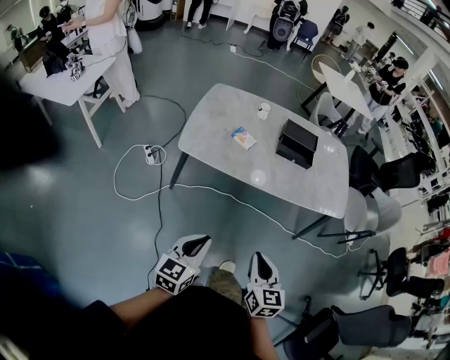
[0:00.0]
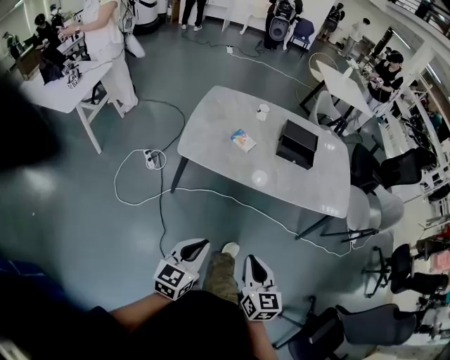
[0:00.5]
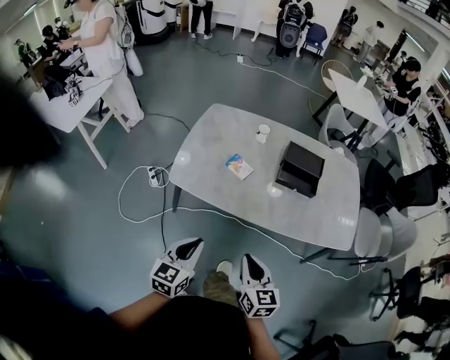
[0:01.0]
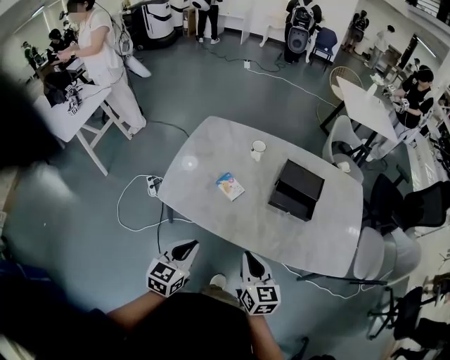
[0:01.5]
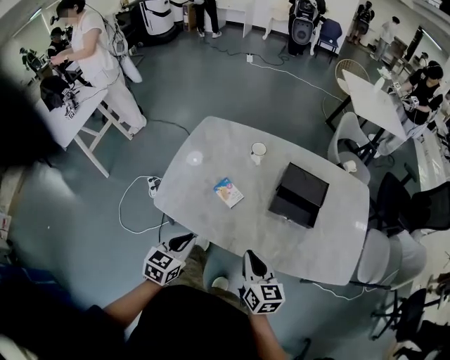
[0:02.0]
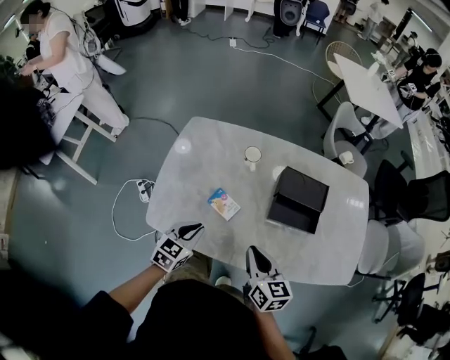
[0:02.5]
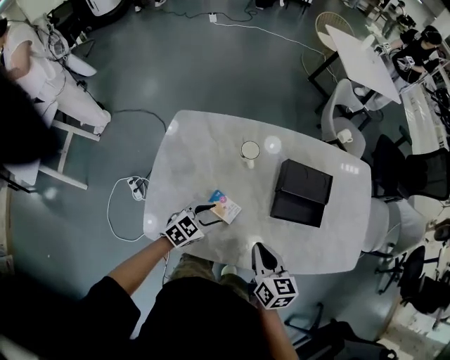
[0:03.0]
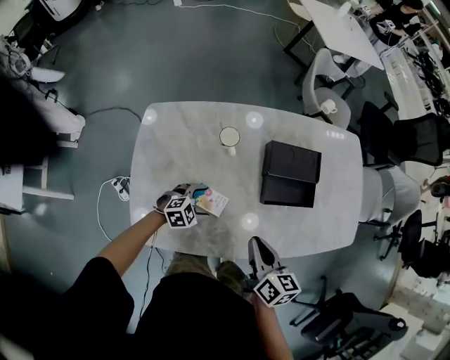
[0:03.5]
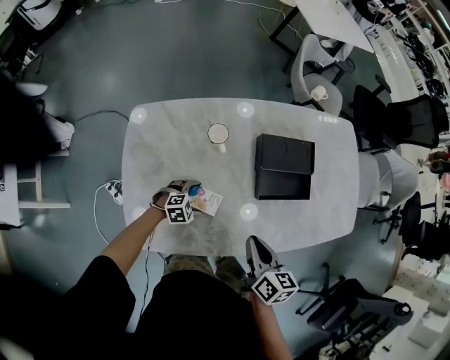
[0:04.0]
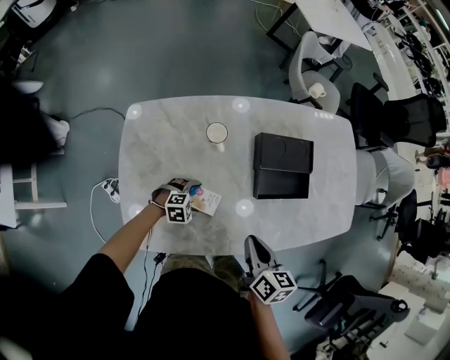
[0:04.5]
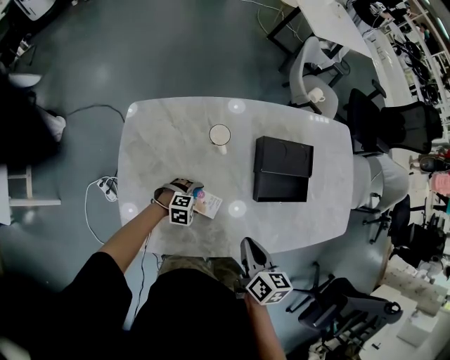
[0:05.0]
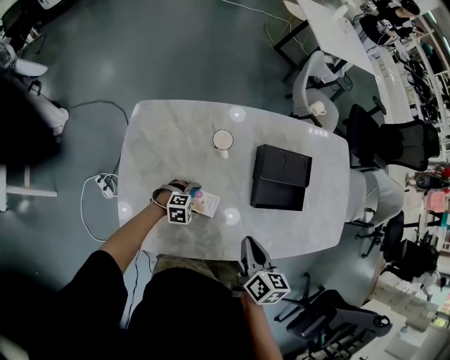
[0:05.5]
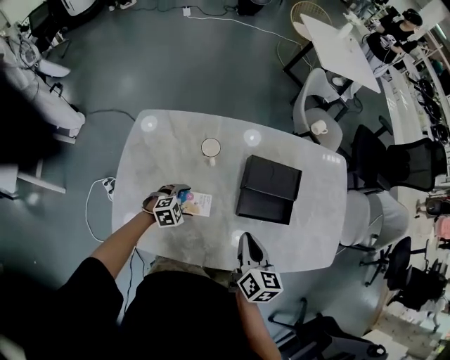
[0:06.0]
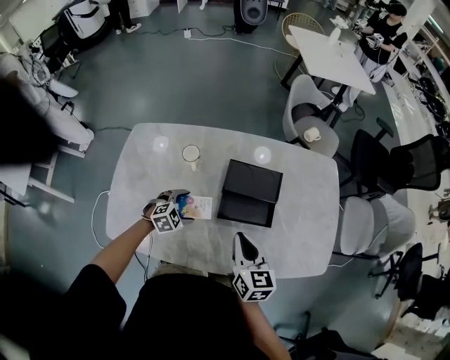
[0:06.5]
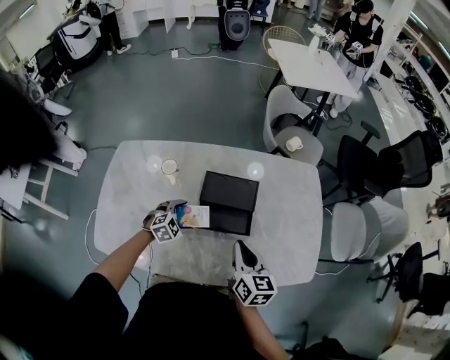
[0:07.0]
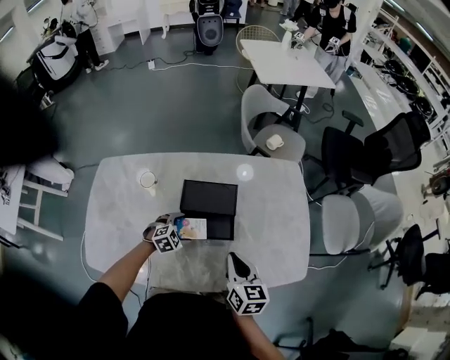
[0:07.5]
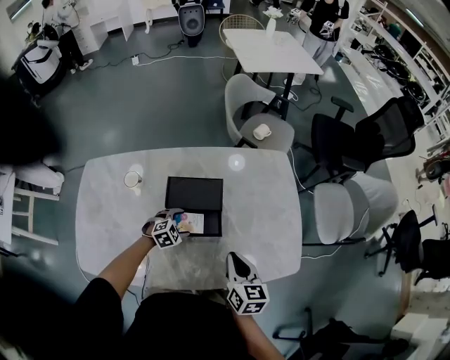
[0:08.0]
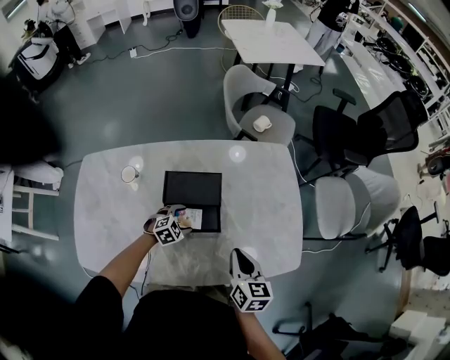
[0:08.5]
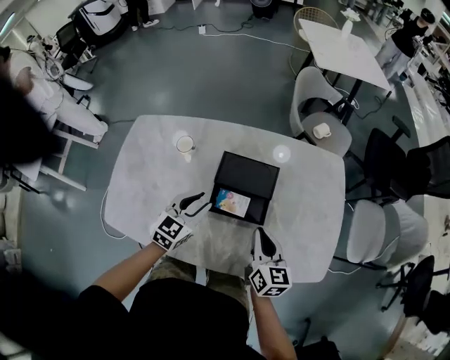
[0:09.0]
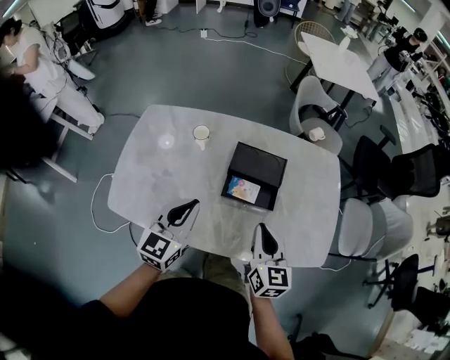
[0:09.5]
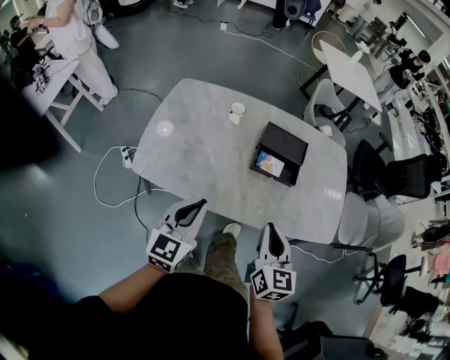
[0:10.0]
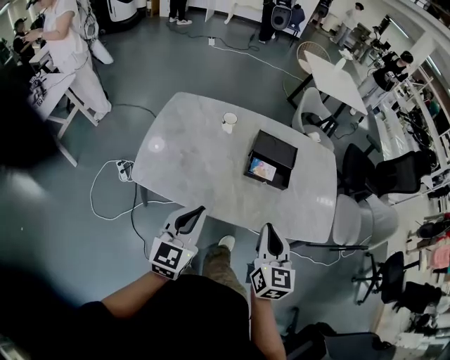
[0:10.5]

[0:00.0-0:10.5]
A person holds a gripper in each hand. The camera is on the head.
0:00.0 to 0:02.0: The two grippers go roughly 40 cm forward.
0:02.0 to 0:04.0: The right gripper changes place by roughly 20 cm, and rotates some 40 degrees, while the left gripper shifts by about 40 cm, rotates roughly 80 degrees, and opens its fingers.
0:04.0 to 0:06.5: The left gripper is displaced upward, to the right and forward by about 15 cm, and turns by some 20 degrees, while the right gripper shifts some 15 cm forward and to the right, and swivels roughly 30 degrees.
0:06.5 to 0:08.5: The left gripper is displaced to the right and forward by roughly 20 cm; the right gripper heads to the right, covering some 20 cm.
0:08.5 to 0:10.5: The left gripper changes place by roughly 60 cm, angles its fingers upward, by approximately 50 degrees, and closes up. The right gripper changes place by about 40 cm, and turns by approximately 30 degrees.

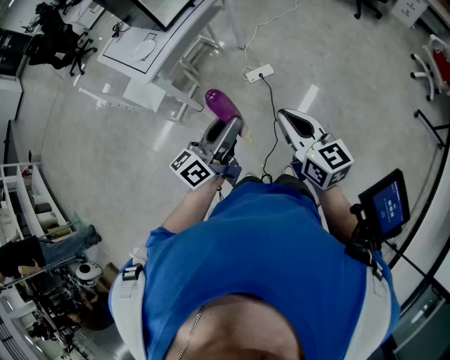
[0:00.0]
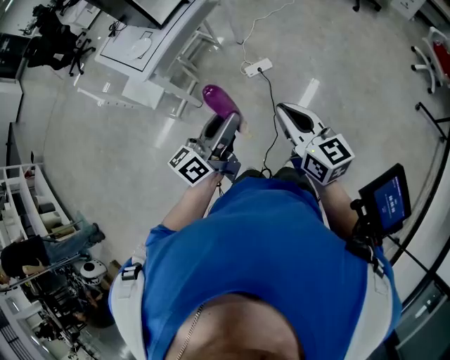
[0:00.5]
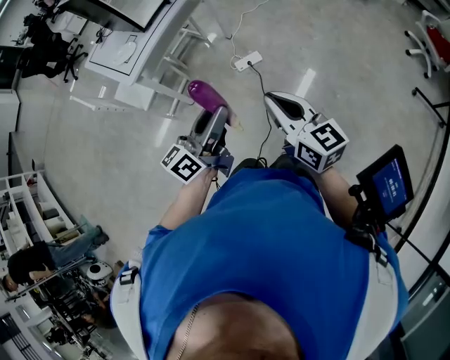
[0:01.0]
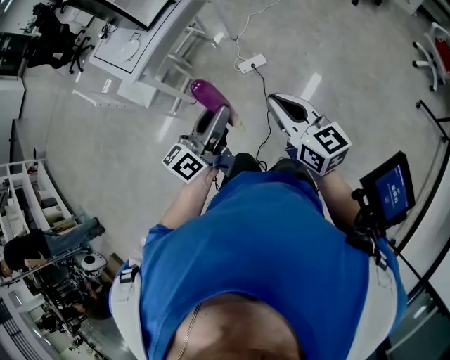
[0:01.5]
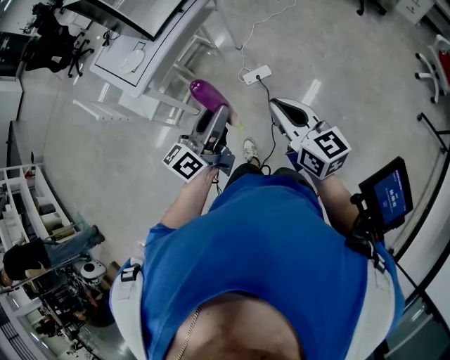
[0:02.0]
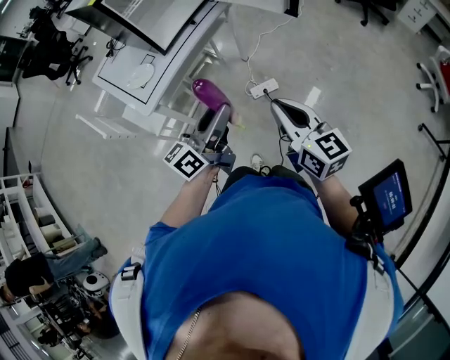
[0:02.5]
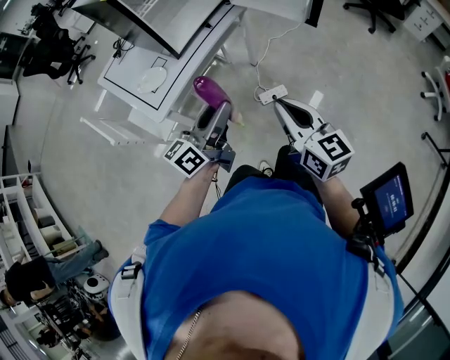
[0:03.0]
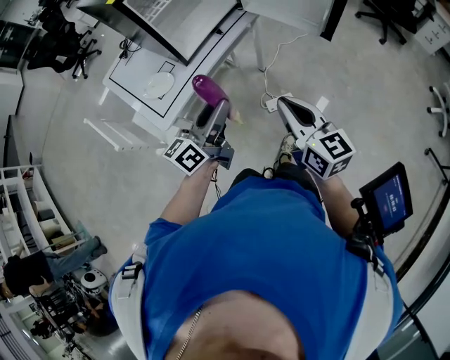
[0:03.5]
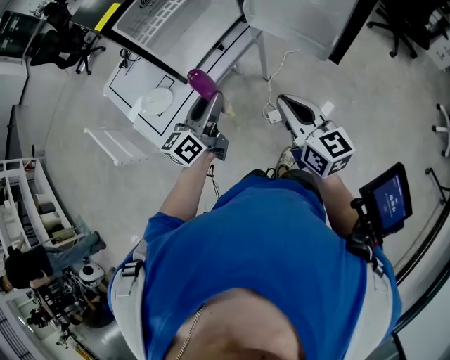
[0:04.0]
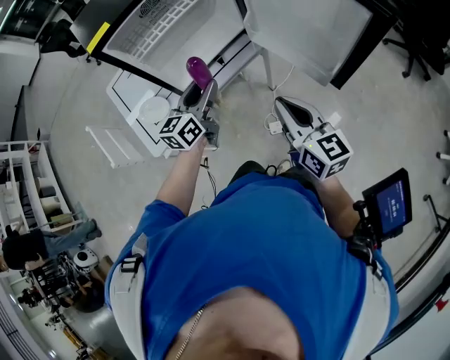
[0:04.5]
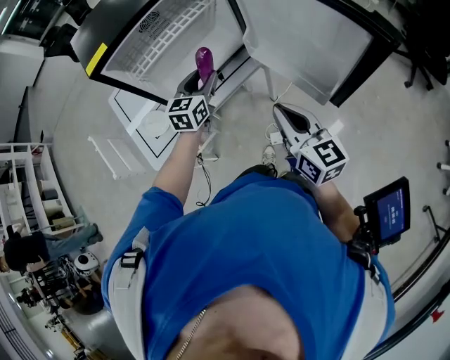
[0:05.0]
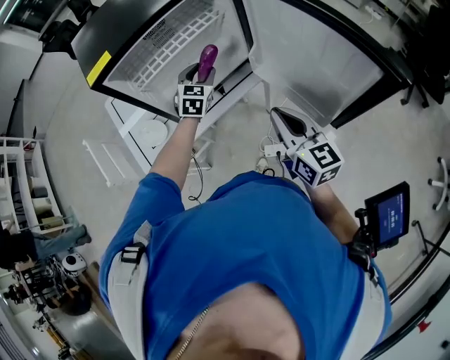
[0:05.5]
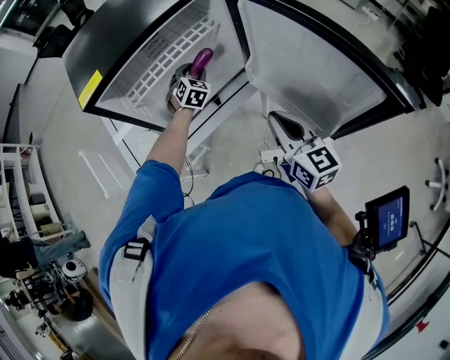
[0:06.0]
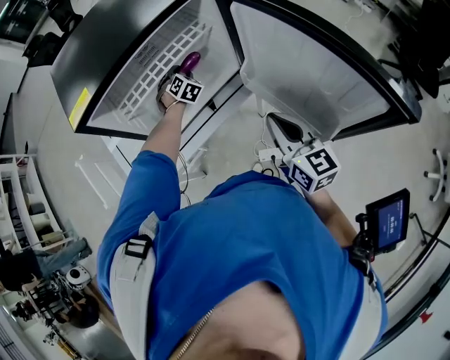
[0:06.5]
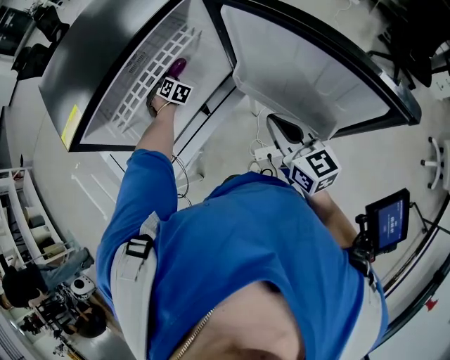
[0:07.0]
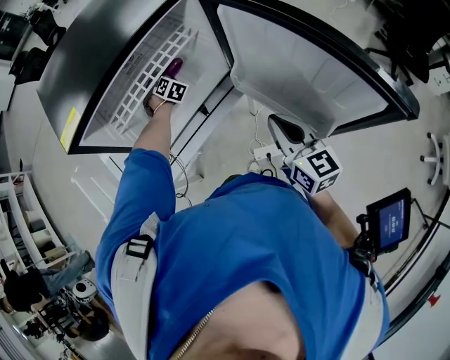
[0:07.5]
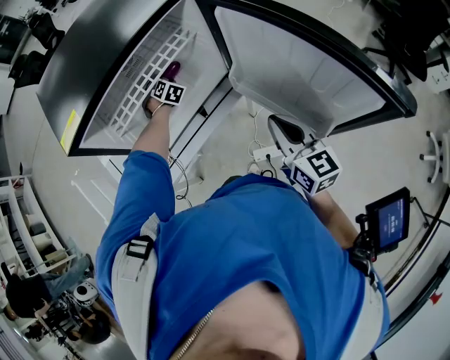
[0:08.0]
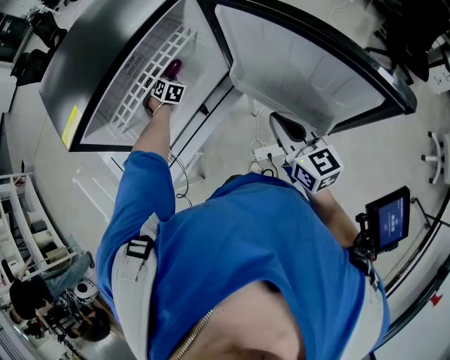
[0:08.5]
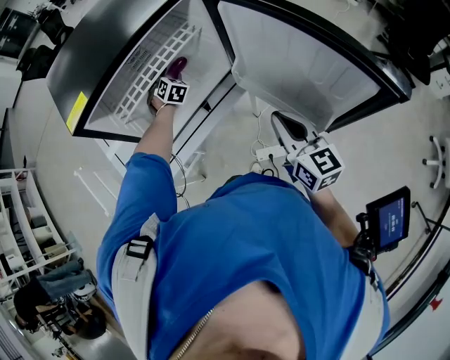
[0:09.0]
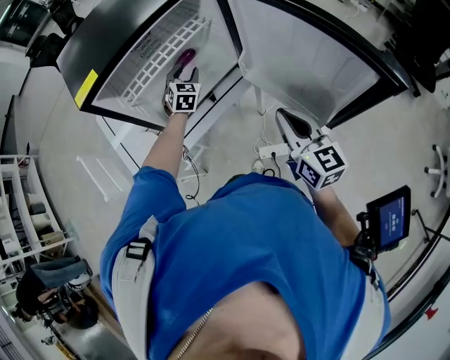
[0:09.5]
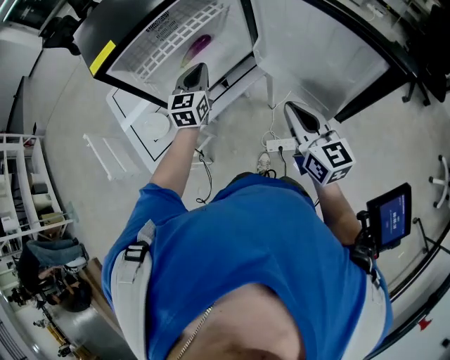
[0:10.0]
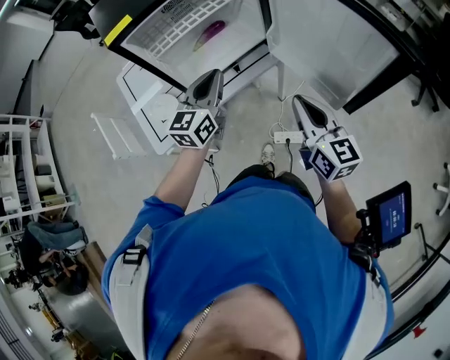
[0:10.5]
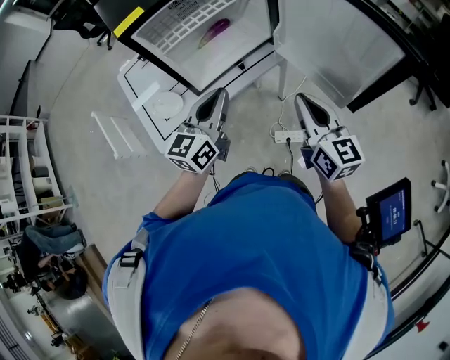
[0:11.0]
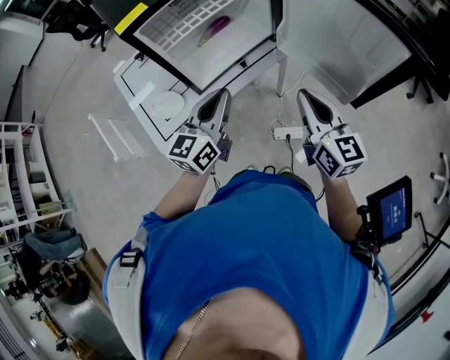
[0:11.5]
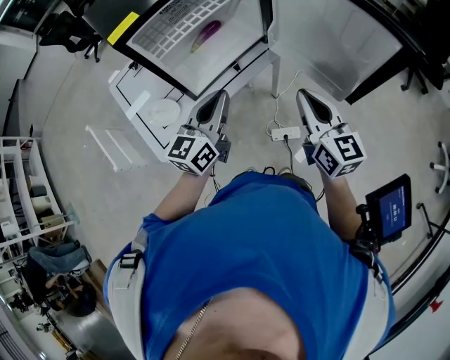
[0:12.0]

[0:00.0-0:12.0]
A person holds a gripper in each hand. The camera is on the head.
0:00.0 to 0:02.0: The grippers make only small movements.
0:02.0 to 0:04.0: The left gripper shifts by approximately 5 cm, while the right gripper moves roughly 10 cm backward and comes back.
0:04.0 to 0:06.0: The right gripper is displaced forward by approximately 20 cm. Meanwhile the left gripper heads forward, covering approximately 40 cm, and tilts its fingers approximately 40 degrees downward.
0:06.0 to 0:08.0: The left gripper heads forward and downward, covering some 10 cm.
0:08.0 to 0:10.0: The left gripper moves backward and upward, roughly 30 cm, tips its fingers upward by about 30 degrees, and closes its fingers; the right gripper shifts about 5 cm backward.
0:10.0 to 0:12.0: The left gripper is displaced backward by roughly 20 cm, and turns by approximately 30 degrees, while the right gripper moves about 5 cm.

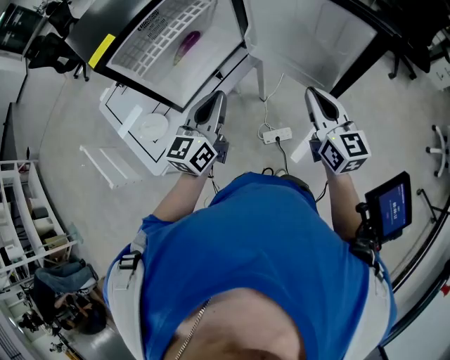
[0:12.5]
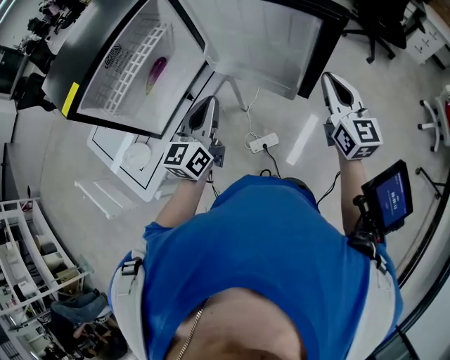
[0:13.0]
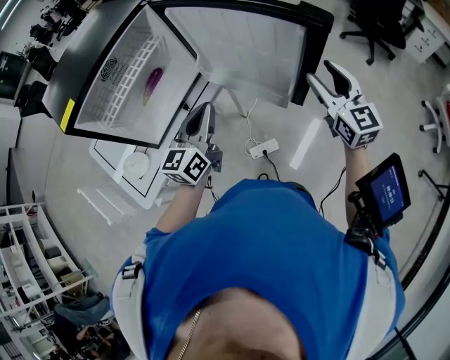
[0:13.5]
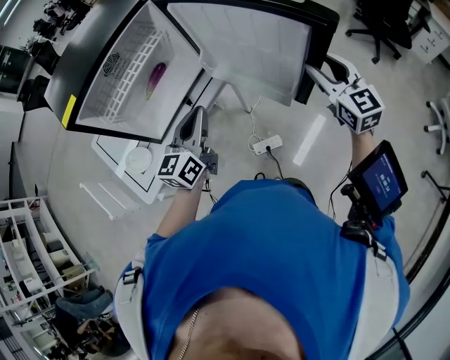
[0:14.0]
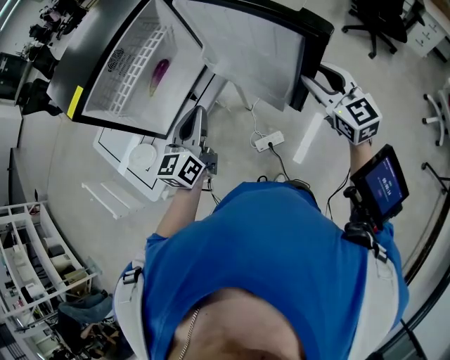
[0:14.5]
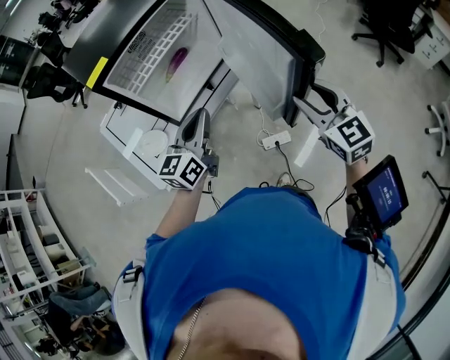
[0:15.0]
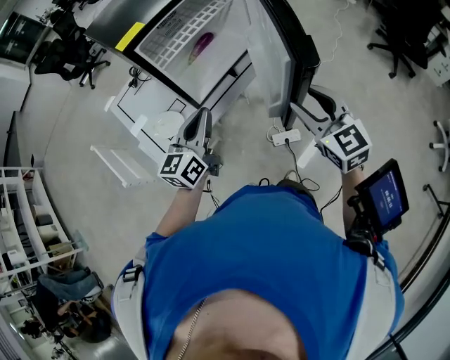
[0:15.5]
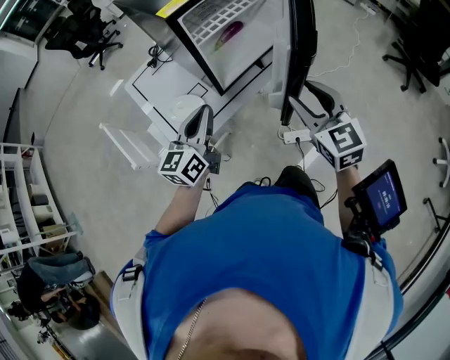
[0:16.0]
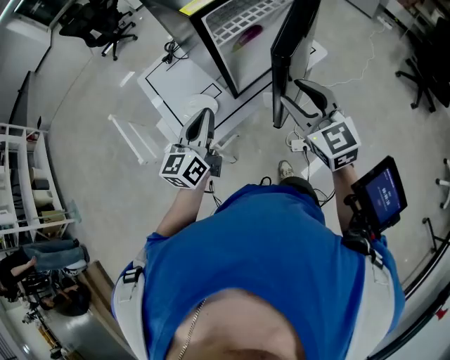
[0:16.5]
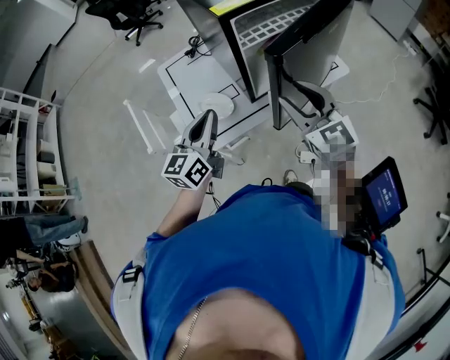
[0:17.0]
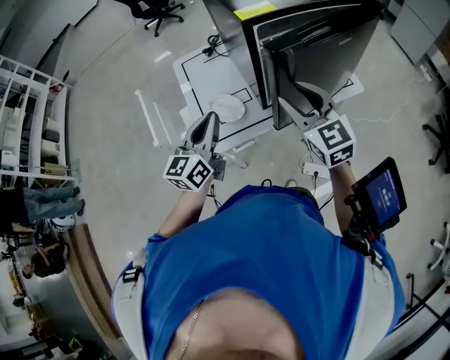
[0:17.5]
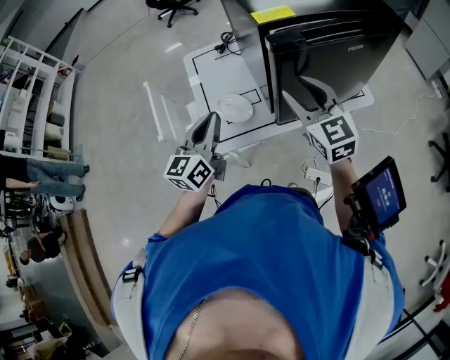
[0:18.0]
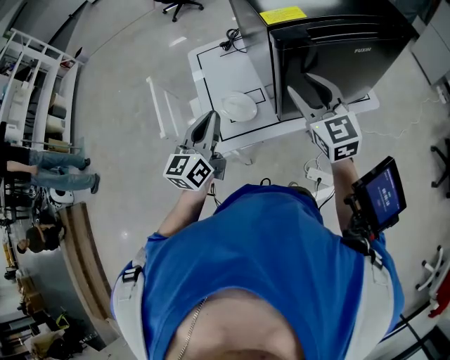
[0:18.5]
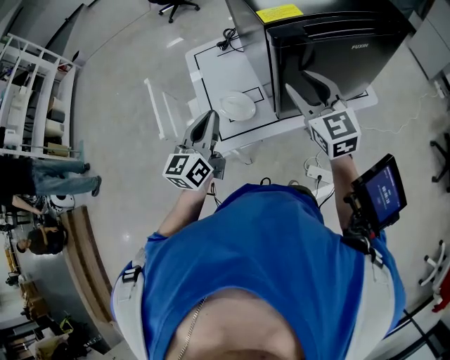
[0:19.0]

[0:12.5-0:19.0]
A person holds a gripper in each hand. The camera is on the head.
0:12.5 to 0:14.5: The right gripper moves to the right, approximately 10 cm, and opens its fingers.
0:14.5 to 0:17.0: The grippers both shift to the left by roughly 35 cm. The left gripper swivels some 20 degrees. Meanwhile the right gripper rotates some 30 degrees.
0:17.0 to 0:19.0: The left gripper shifts some 5 cm to the left, while the right gripper travels forward by about 10 cm.
